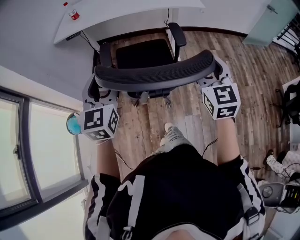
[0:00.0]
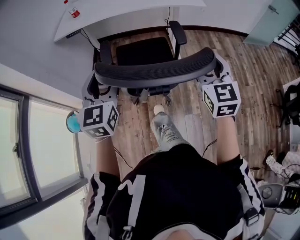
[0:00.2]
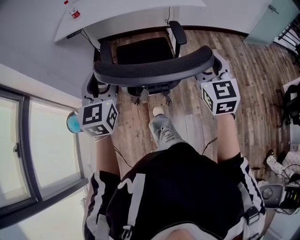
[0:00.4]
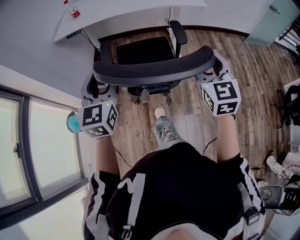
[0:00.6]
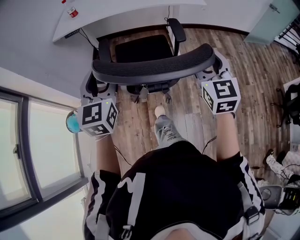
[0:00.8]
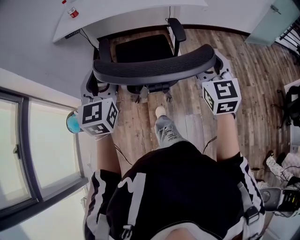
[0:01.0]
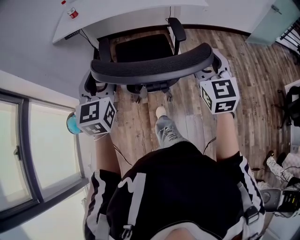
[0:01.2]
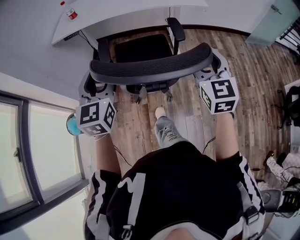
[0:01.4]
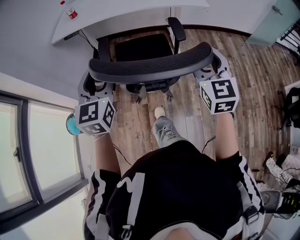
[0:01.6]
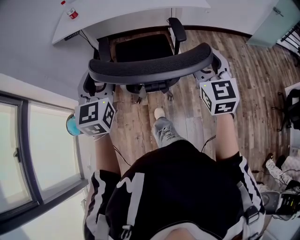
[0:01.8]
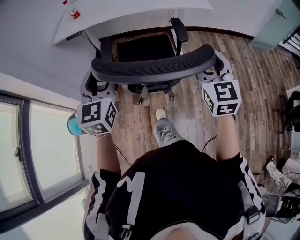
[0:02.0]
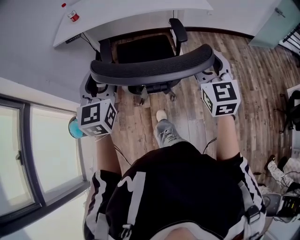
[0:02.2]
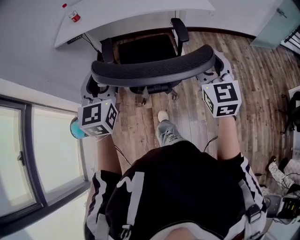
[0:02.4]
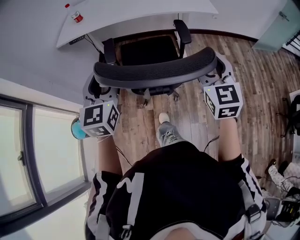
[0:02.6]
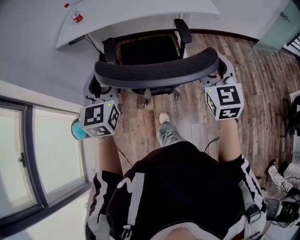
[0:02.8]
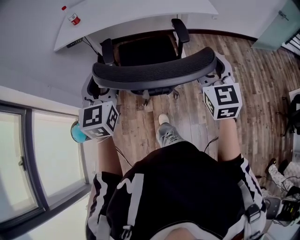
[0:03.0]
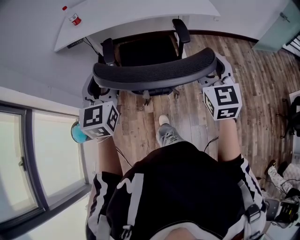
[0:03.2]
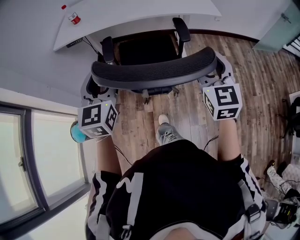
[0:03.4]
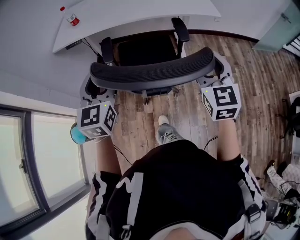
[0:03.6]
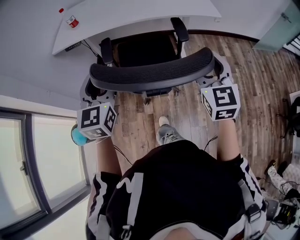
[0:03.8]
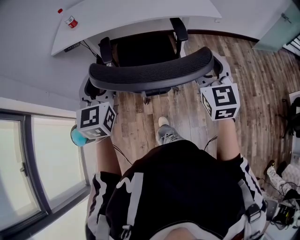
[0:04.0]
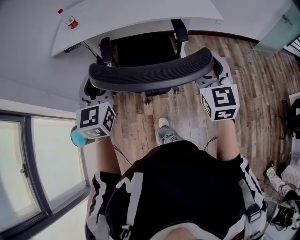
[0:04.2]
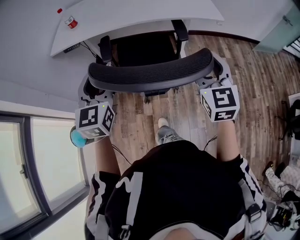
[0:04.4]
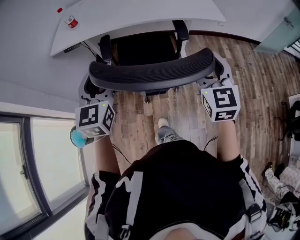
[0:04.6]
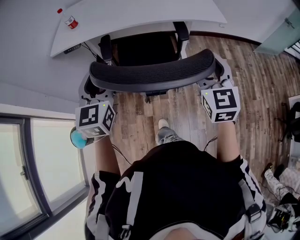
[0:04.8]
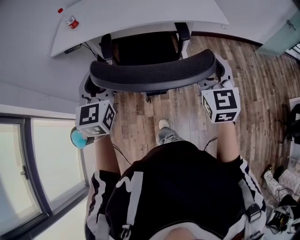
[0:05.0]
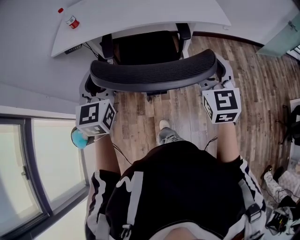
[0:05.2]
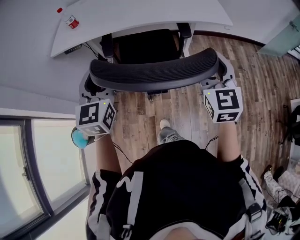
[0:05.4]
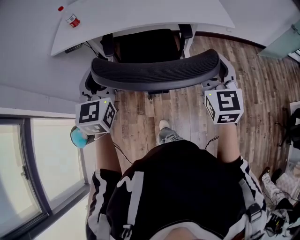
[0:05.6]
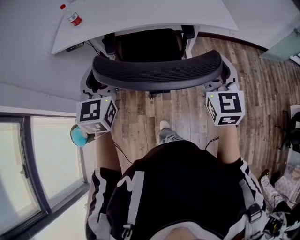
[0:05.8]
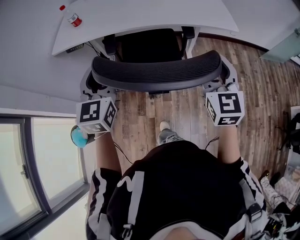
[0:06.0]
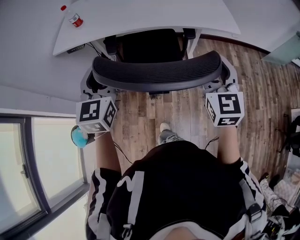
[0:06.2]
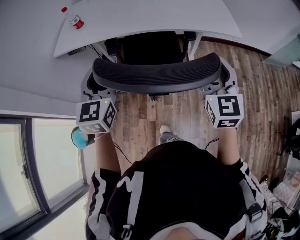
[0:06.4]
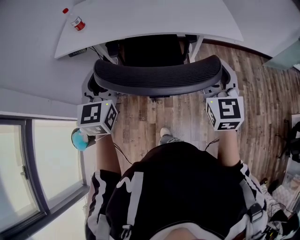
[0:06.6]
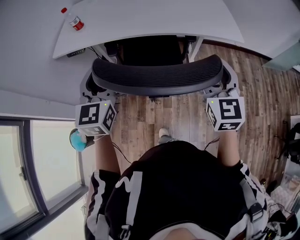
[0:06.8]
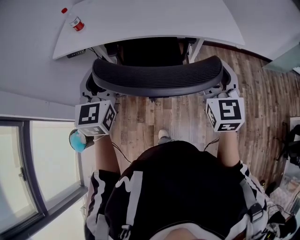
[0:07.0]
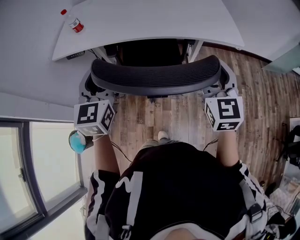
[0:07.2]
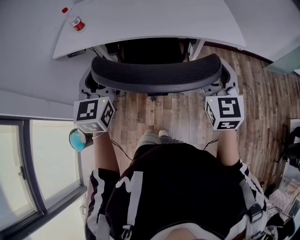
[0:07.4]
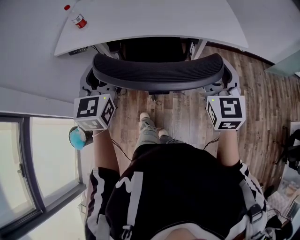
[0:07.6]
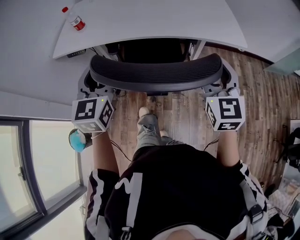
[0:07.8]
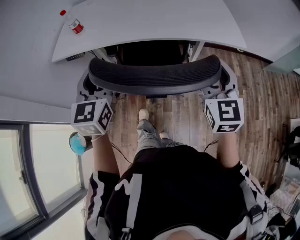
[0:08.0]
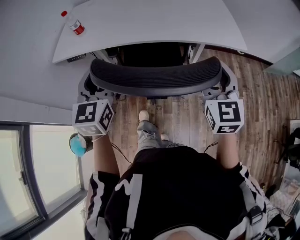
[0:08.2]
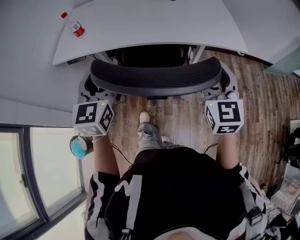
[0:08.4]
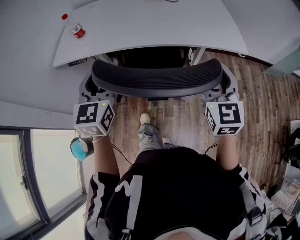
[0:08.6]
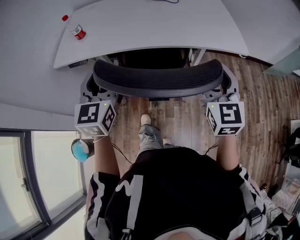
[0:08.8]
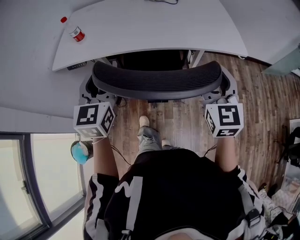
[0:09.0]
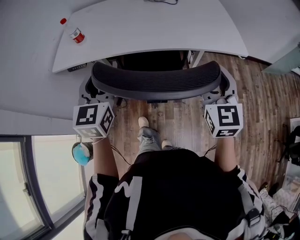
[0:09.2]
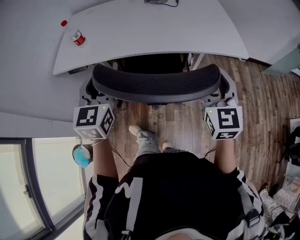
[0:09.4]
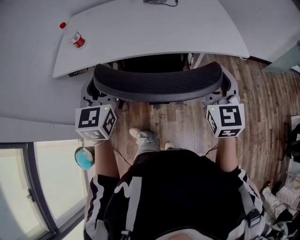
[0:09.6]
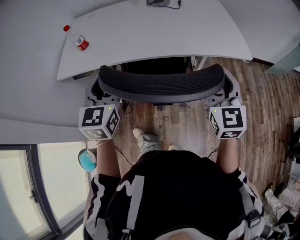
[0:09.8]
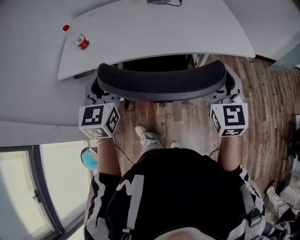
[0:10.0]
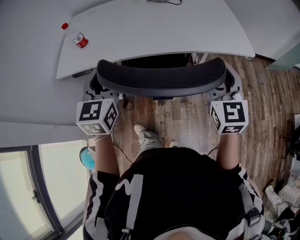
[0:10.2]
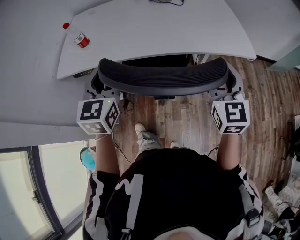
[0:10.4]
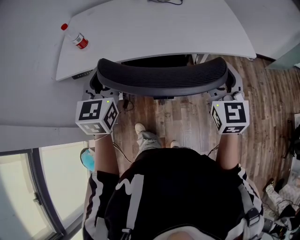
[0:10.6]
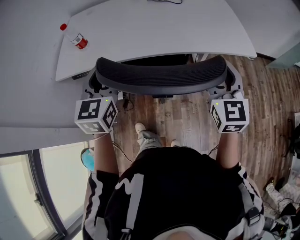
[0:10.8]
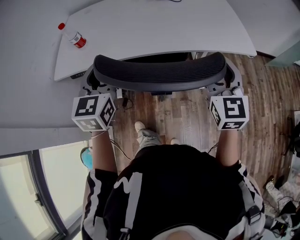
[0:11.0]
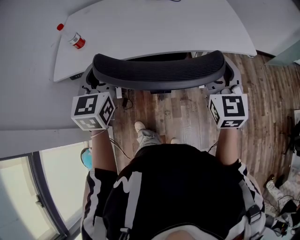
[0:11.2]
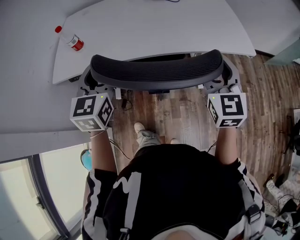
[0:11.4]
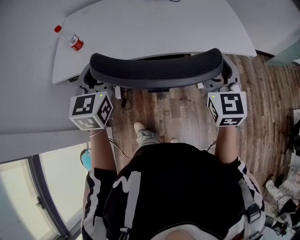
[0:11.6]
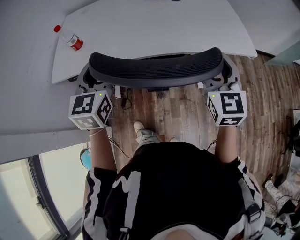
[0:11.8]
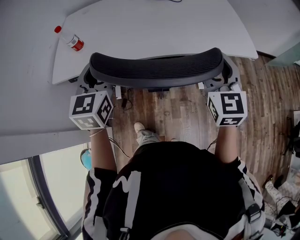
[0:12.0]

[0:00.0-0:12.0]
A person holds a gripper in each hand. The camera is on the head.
0:00.0 to 0:01.6: Both grippers move forward, approximately 5 cm.
0:01.6 to 0:03.0: Both grippers move forward, roughly 5 cm.
0:03.0 to 0:04.4: The grippers both shift forward by some 10 cm.
0:04.4 to 0:06.0: Both grippers travel together forward, some 10 cm.
0:06.0 to 0:07.6: Both grippers travel together forward, some 5 cm.
0:07.6 to 0:09.0: The left gripper shifts by approximately 5 cm.
0:09.0 to 0:10.4: The right gripper shifts by approximately 5 cm. The left gripper heads forward, covering roughly 5 cm.
0:10.4 to 0:12.0: Both grippers move forward, some 5 cm.

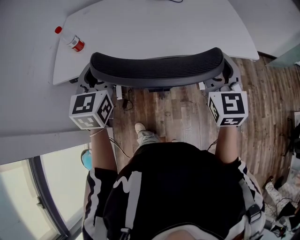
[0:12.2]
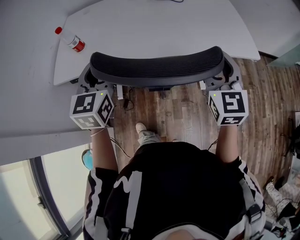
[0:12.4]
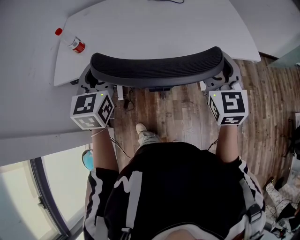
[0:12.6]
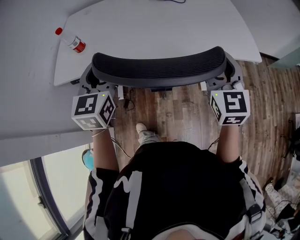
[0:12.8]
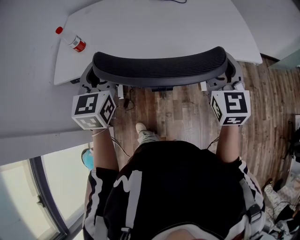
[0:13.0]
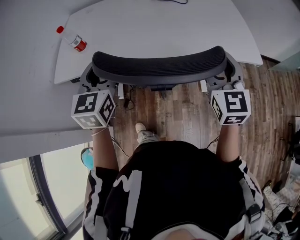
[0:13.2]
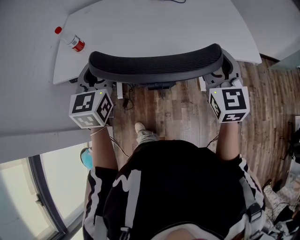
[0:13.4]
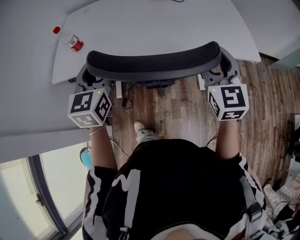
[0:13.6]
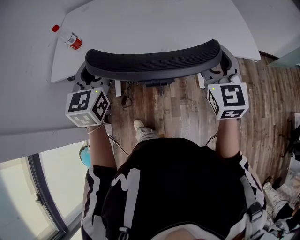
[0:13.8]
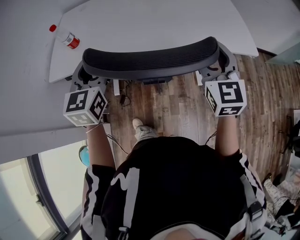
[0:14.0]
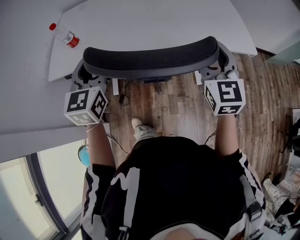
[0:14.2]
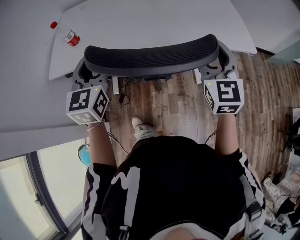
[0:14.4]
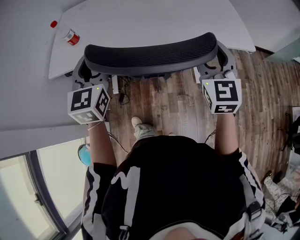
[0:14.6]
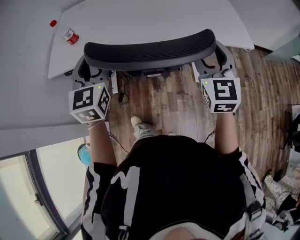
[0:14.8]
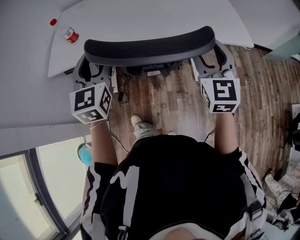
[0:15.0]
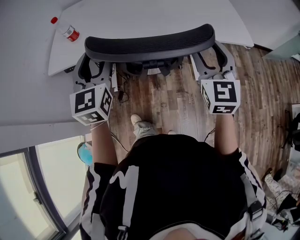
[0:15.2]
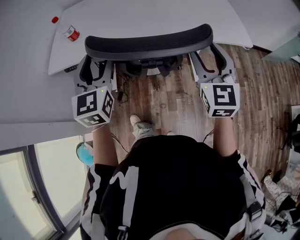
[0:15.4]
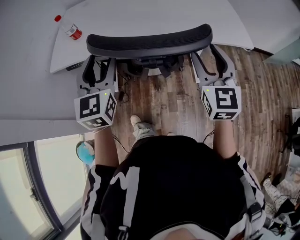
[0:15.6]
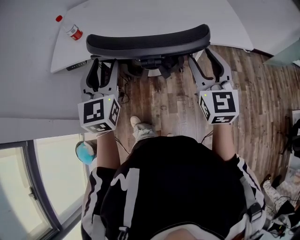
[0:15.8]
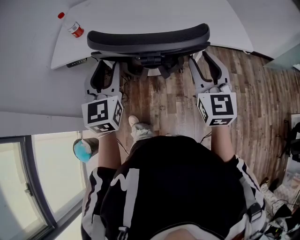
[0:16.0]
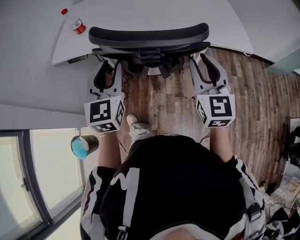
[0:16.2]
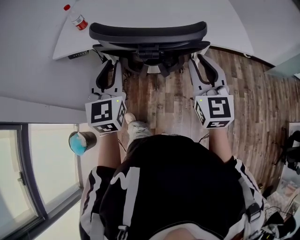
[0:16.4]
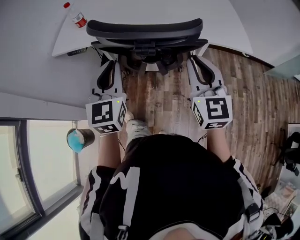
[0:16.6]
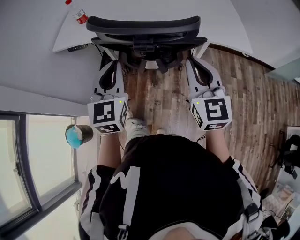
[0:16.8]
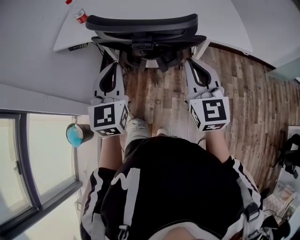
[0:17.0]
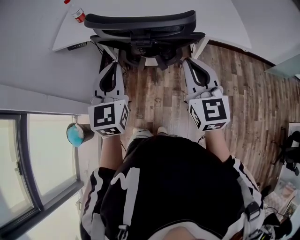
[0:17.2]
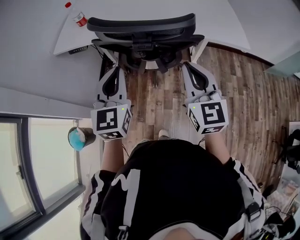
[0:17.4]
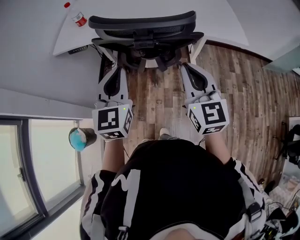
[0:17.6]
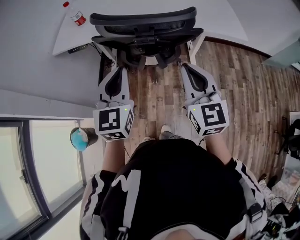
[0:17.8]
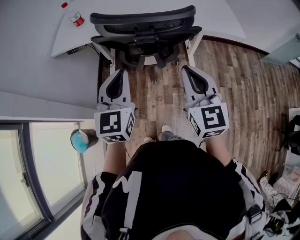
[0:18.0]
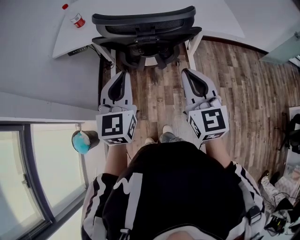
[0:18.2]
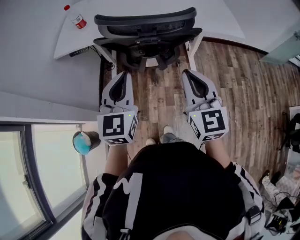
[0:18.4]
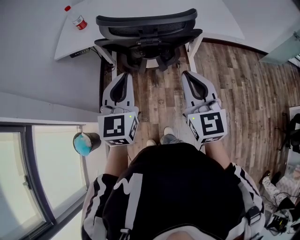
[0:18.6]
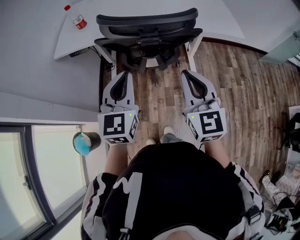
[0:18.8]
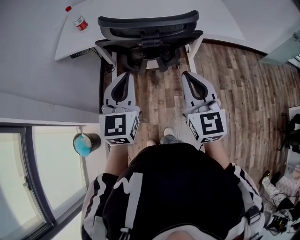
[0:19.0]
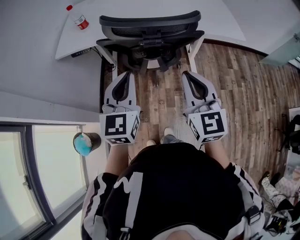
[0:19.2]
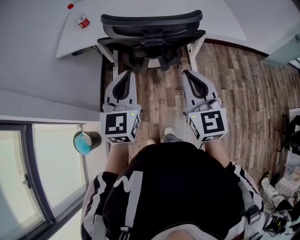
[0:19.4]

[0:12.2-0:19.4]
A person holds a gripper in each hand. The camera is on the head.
0:12.2 to 0:15.0: The grippers move only a little.
0:15.0 to 0:16.6: The right gripper is displaced backward by some 10 cm, and closes; the left gripper shifts some 15 cm backward and to the right, and closes.
0:16.6 to 0:18.0: Both grippers travel together backward, roughly 10 cm.
0:18.0 to 0:19.4: The grippers make only small movements.

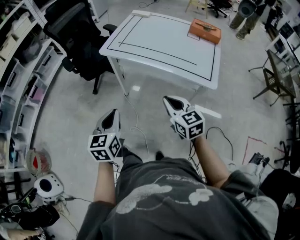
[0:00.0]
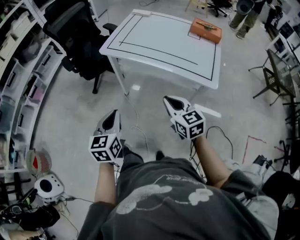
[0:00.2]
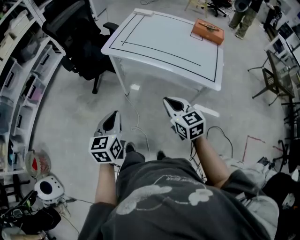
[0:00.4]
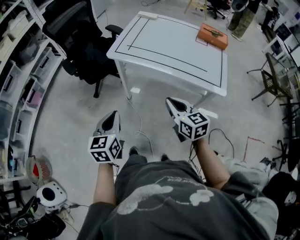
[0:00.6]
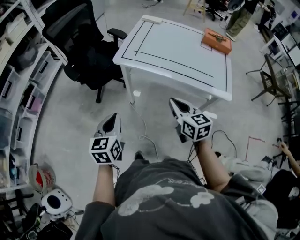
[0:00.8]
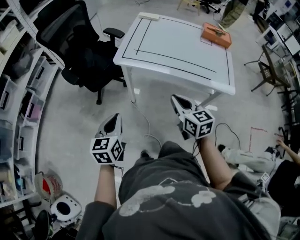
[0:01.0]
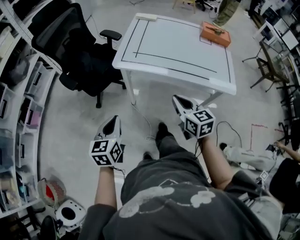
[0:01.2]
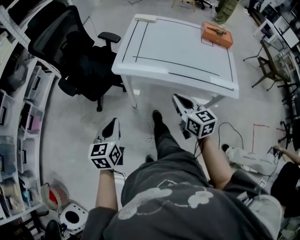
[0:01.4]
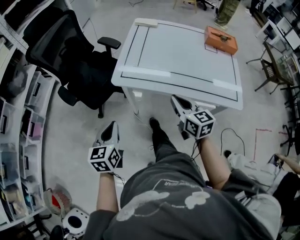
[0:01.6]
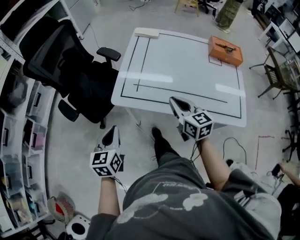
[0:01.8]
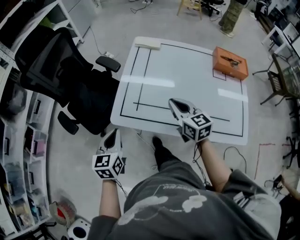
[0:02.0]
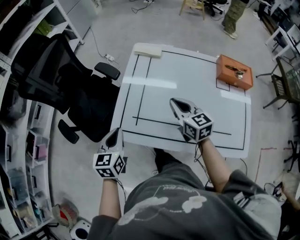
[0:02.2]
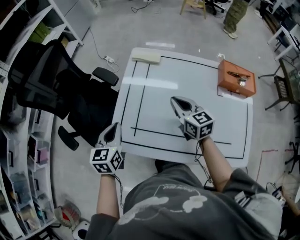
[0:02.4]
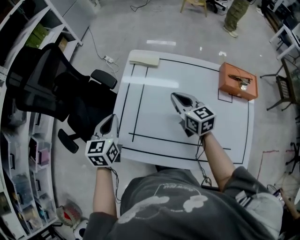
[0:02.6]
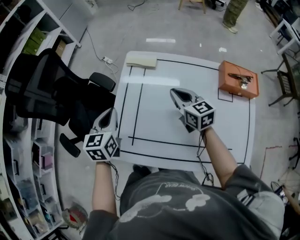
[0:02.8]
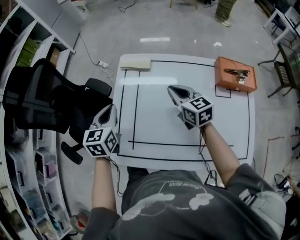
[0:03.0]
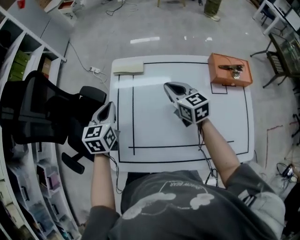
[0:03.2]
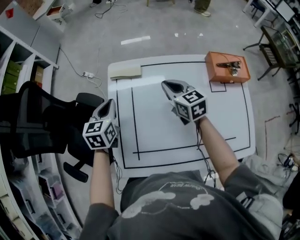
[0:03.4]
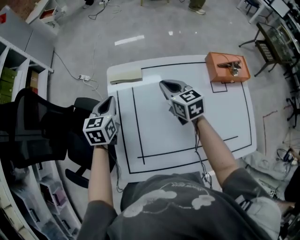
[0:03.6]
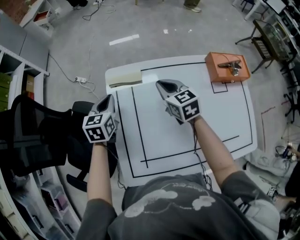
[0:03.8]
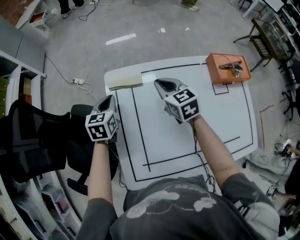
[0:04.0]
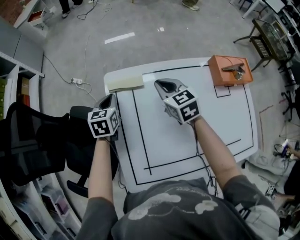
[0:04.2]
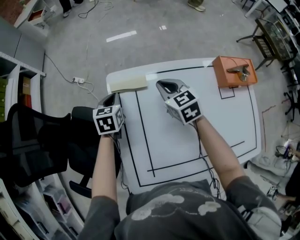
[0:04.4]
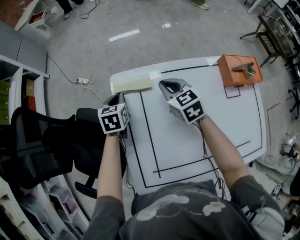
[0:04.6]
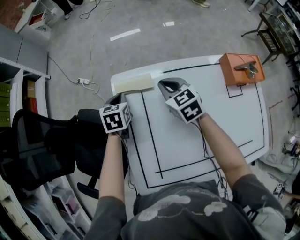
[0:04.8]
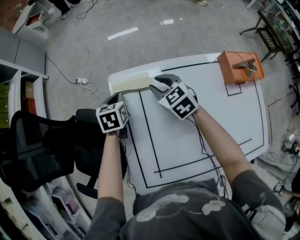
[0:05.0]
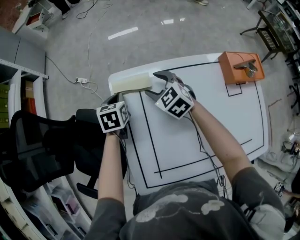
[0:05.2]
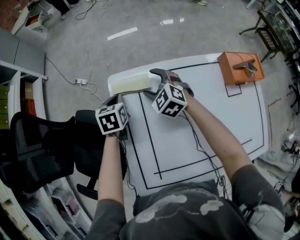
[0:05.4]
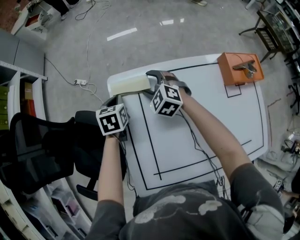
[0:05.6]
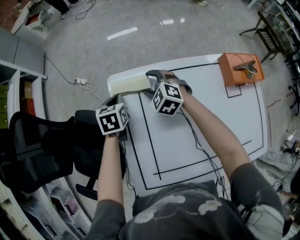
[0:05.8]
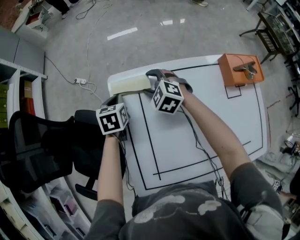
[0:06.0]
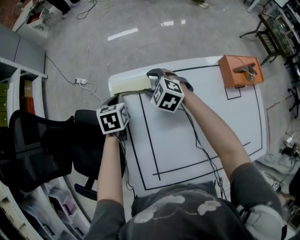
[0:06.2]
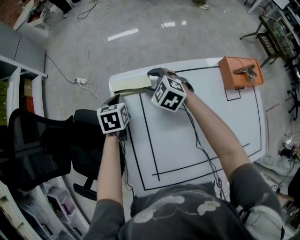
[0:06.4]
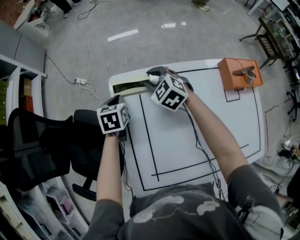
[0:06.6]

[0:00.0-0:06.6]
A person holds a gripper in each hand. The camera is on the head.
0:00.0 to 0:01.6: Both grippers move forward and to the left, about 30 cm. The right gripper turns by about 20 degrees.
0:01.6 to 0:03.2: Both grippers are carried forward, about 50 cm.
0:03.2 to 0:05.0: The left gripper is displaced forward and downward by roughly 25 cm. The right gripper shifts about 15 cm forward, to the left and downward, rotates roughly 20 degrees, and opens its fingers.
0:05.0 to 0:06.6: The right gripper opens and closes again.
